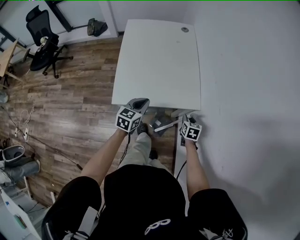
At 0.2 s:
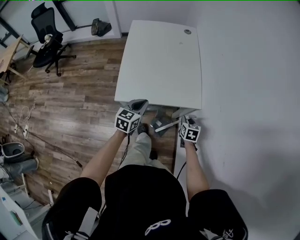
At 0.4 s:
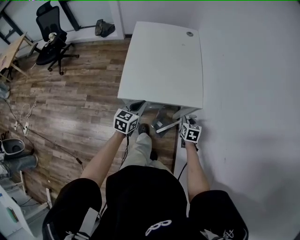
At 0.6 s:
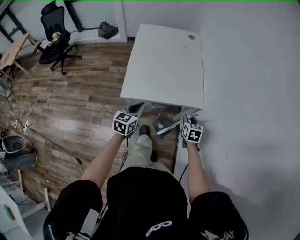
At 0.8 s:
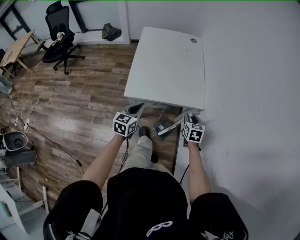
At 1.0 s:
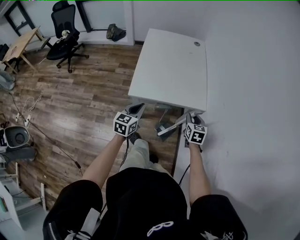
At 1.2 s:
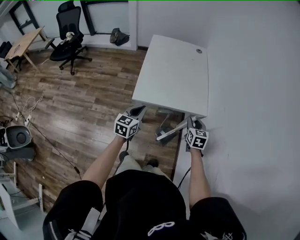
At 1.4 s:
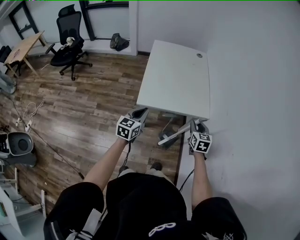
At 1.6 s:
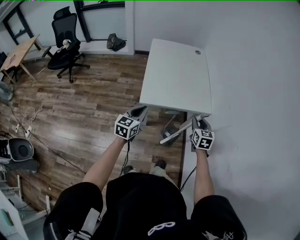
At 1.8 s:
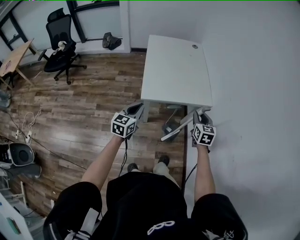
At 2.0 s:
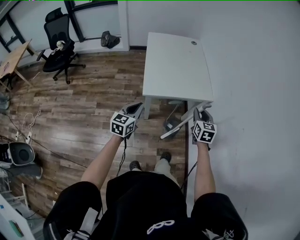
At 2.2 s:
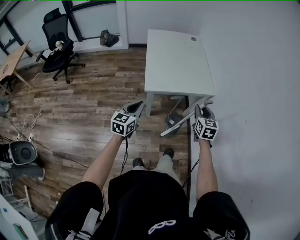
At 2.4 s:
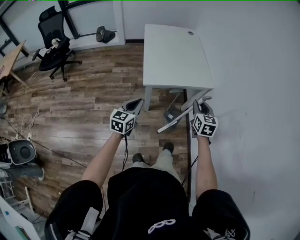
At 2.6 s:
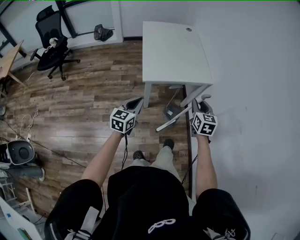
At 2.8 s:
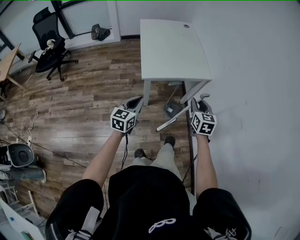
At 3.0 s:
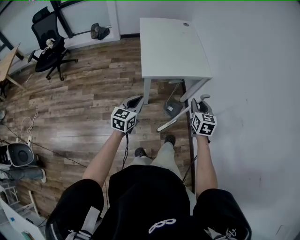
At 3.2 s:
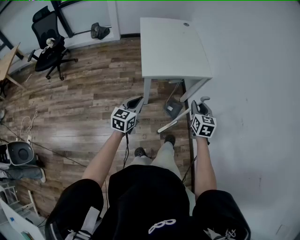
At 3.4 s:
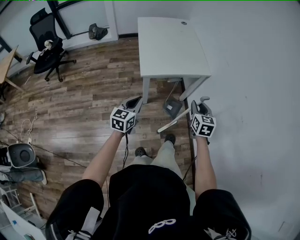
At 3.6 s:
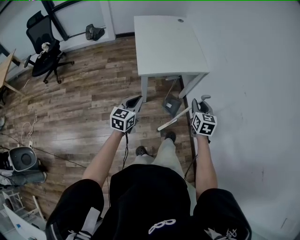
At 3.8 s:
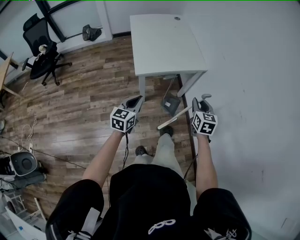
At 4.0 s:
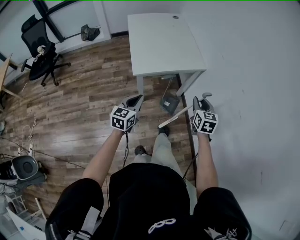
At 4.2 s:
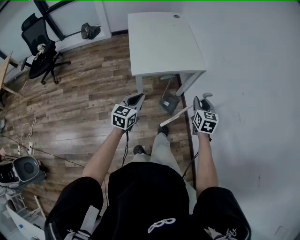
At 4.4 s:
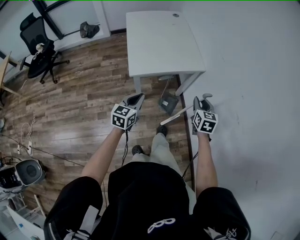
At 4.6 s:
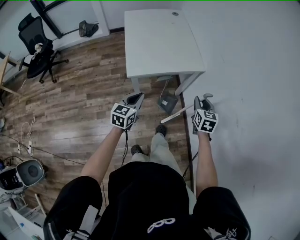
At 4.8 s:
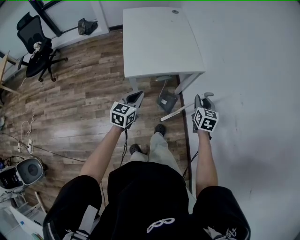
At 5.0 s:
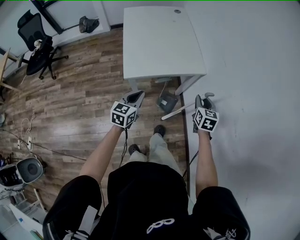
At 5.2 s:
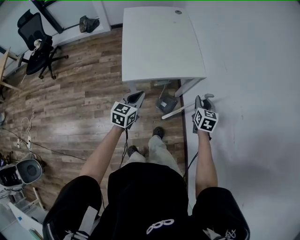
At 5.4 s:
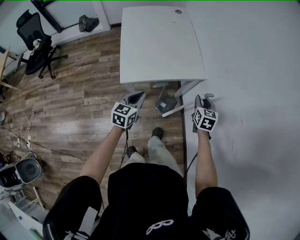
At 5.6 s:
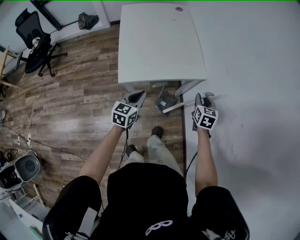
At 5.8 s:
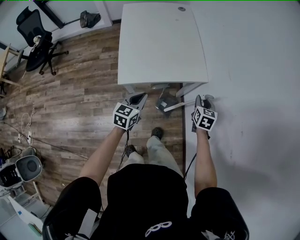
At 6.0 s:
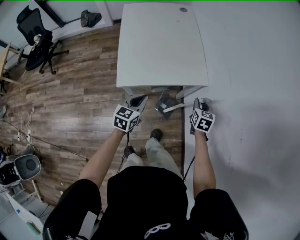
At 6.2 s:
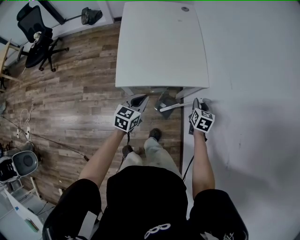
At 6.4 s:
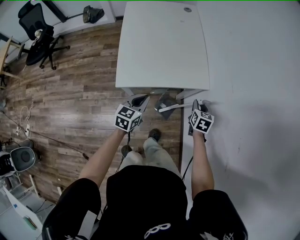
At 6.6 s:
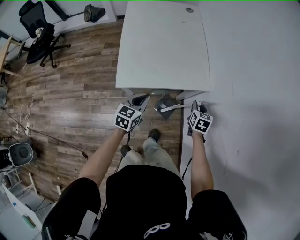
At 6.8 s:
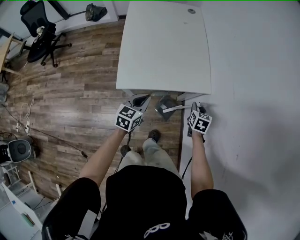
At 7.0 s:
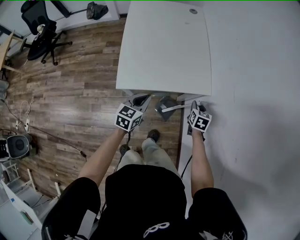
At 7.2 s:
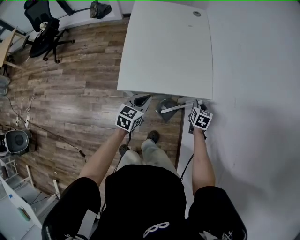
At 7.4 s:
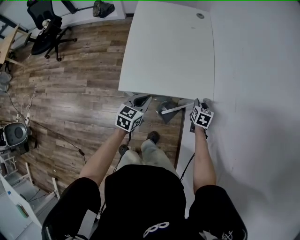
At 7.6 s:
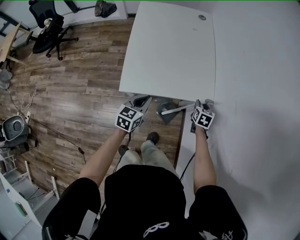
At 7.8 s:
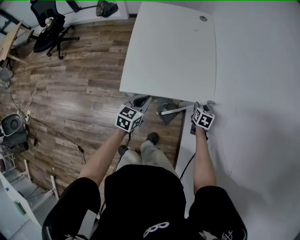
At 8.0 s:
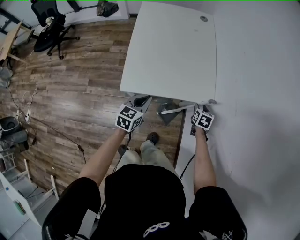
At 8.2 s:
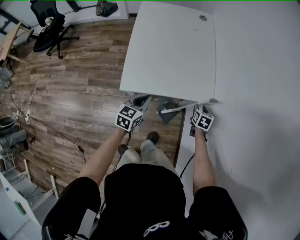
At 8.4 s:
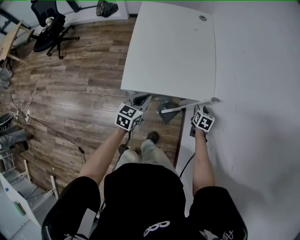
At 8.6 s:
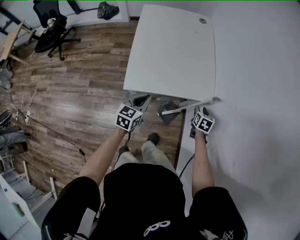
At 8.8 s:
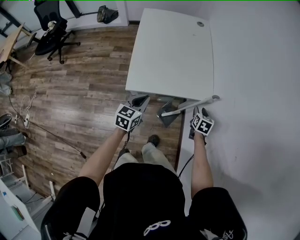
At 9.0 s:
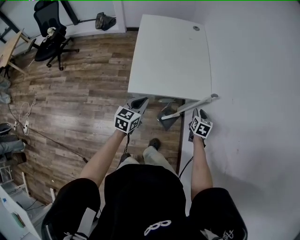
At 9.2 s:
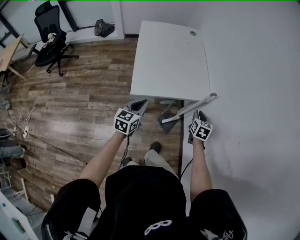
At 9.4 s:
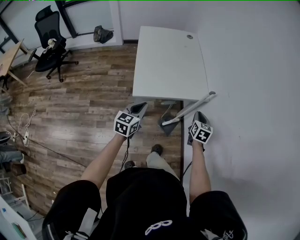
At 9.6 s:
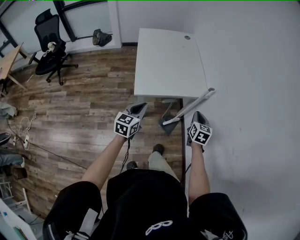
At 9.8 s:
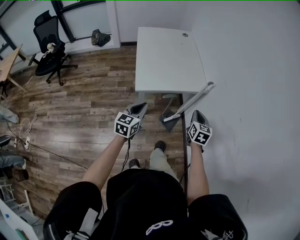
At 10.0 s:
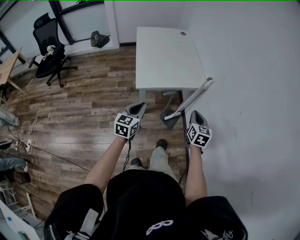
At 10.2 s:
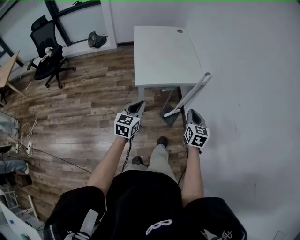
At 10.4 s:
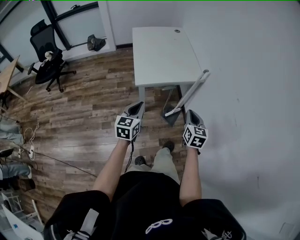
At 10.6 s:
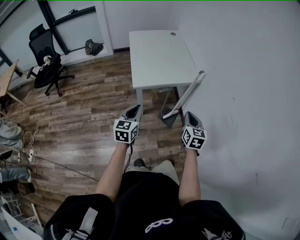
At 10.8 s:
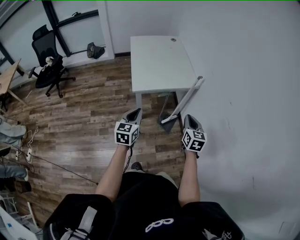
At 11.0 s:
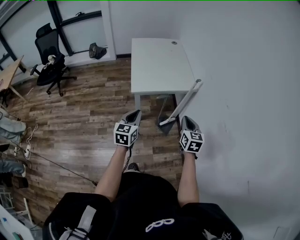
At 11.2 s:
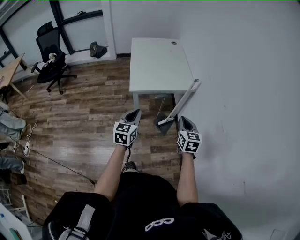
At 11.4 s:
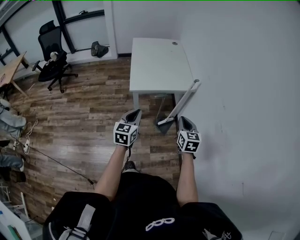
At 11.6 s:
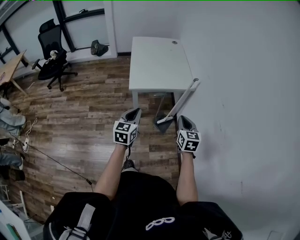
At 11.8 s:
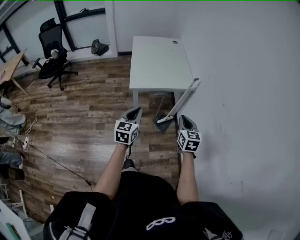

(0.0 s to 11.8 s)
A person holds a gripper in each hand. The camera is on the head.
0.0 s - 1.4 s: The right gripper is displaced upward, backward and to the left by roughly 25 cm, and rotates approximately 20 degrees. The left gripper is displaced backward, to the left and upward by about 25 cm.
1.4 s - 3.0 s: The left gripper shifts some 20 cm backward and to the left. The right gripper travels backward by approximately 20 cm.
3.0 s - 4.4 s: The right gripper shifts roughly 10 cm to the right and forward; the left gripper goes about 10 cm forward and to the right.
4.4 s - 6.0 s: The right gripper goes approximately 25 cm forward and downward. Meanwhile the left gripper travels forward by approximately 20 cm.
6.0 s - 7.4 s: The right gripper goes roughly 10 cm forward and downward. Meanwhile the left gripper travels forward by about 5 cm.
7.4 s - 8.8 s: The two grippers go approximately 5 cm backward.
8.8 s - 10.4 s: Both grippers move backward and upward, some 35 cm. The right gripper swivels roughly 20 degrees, and closes.
10.4 s - 11.8 s: The left gripper moves to the right, roughly 5 cm, while the right gripper moves some 5 cm.

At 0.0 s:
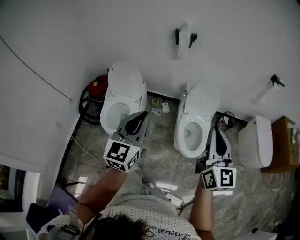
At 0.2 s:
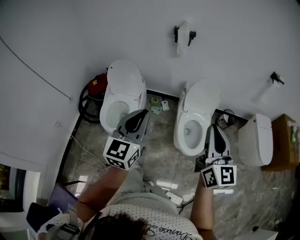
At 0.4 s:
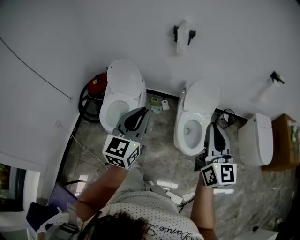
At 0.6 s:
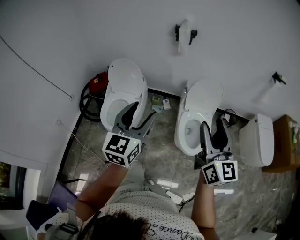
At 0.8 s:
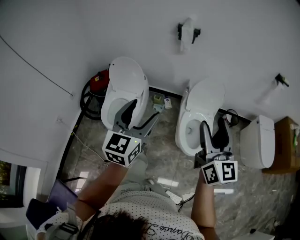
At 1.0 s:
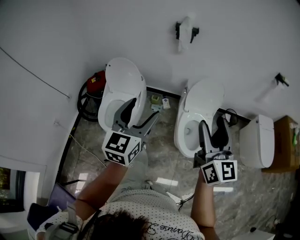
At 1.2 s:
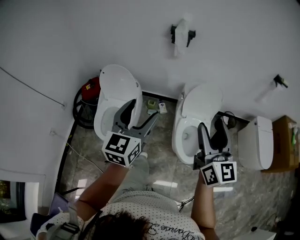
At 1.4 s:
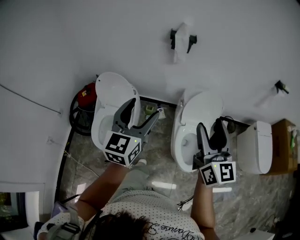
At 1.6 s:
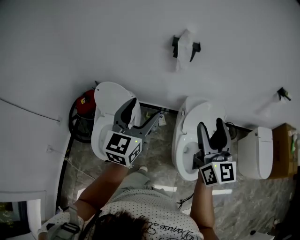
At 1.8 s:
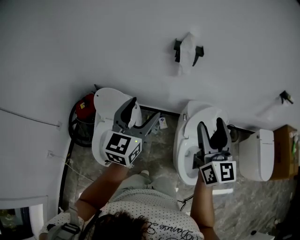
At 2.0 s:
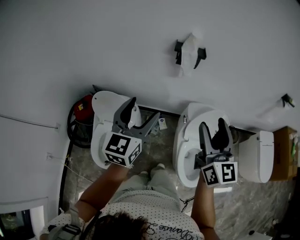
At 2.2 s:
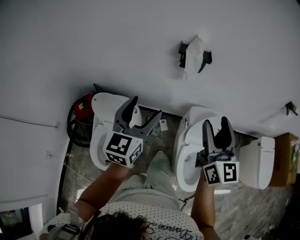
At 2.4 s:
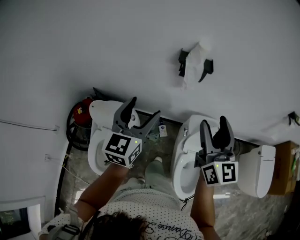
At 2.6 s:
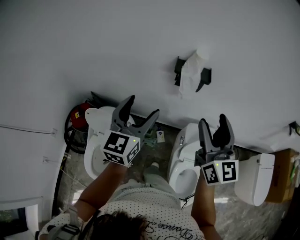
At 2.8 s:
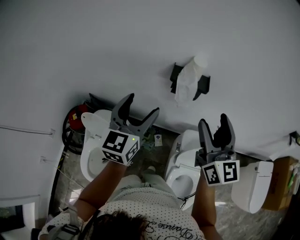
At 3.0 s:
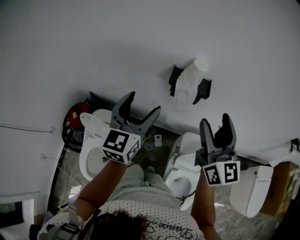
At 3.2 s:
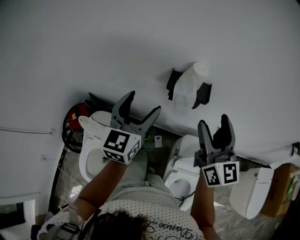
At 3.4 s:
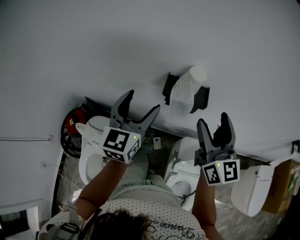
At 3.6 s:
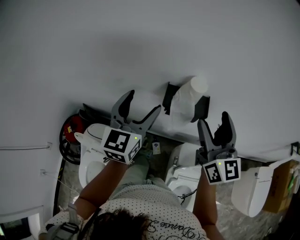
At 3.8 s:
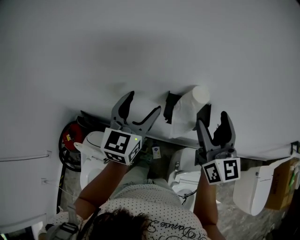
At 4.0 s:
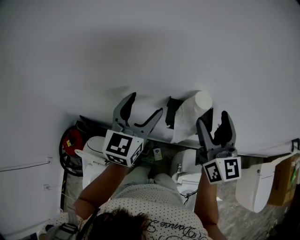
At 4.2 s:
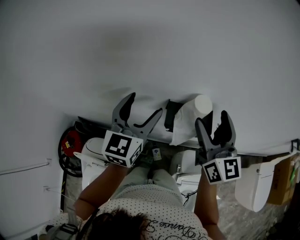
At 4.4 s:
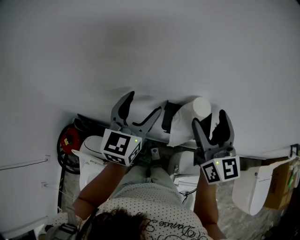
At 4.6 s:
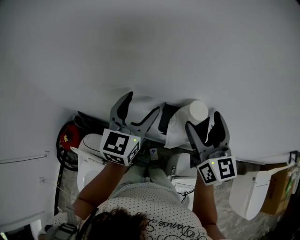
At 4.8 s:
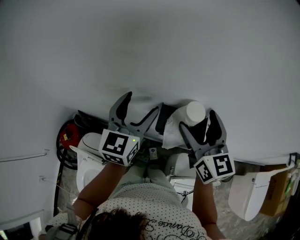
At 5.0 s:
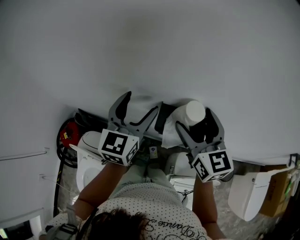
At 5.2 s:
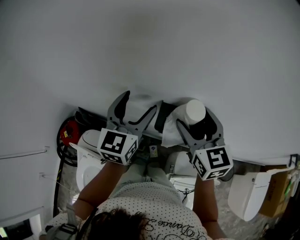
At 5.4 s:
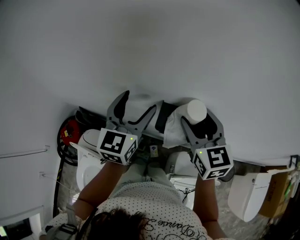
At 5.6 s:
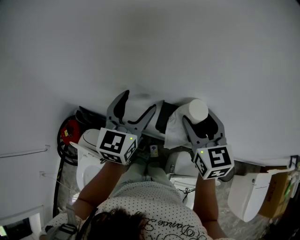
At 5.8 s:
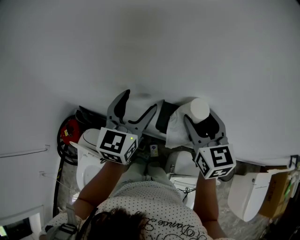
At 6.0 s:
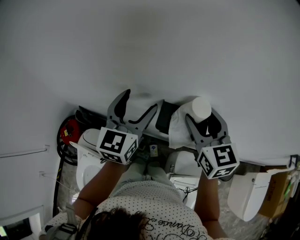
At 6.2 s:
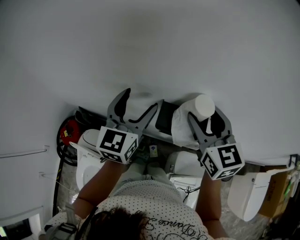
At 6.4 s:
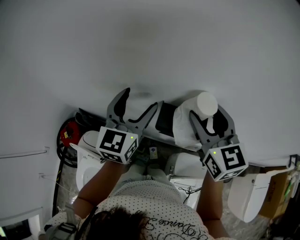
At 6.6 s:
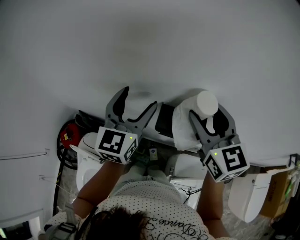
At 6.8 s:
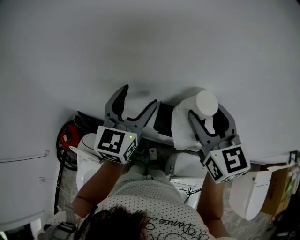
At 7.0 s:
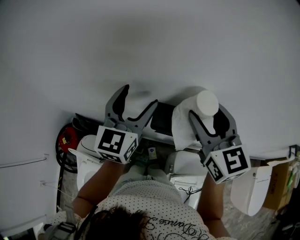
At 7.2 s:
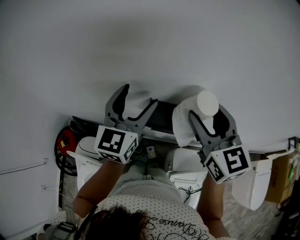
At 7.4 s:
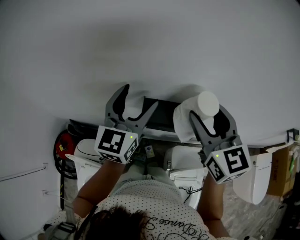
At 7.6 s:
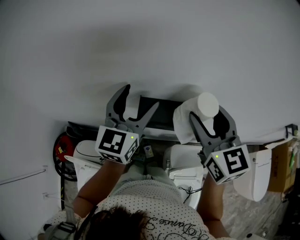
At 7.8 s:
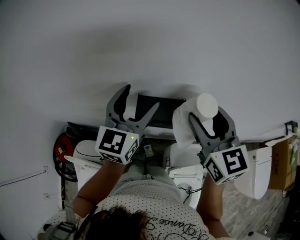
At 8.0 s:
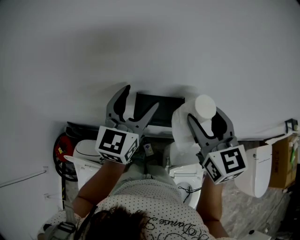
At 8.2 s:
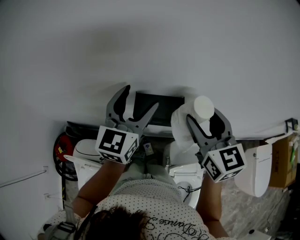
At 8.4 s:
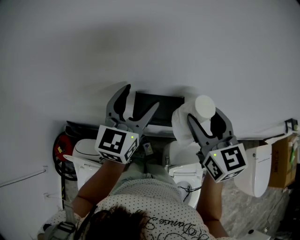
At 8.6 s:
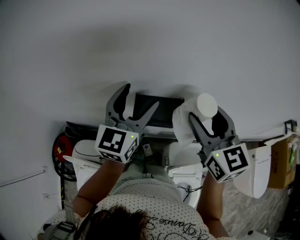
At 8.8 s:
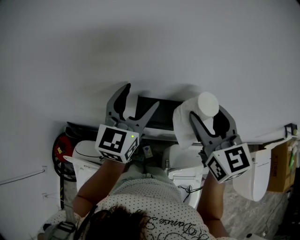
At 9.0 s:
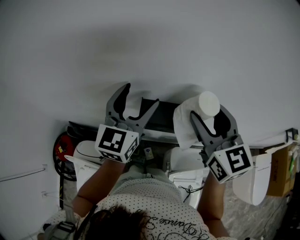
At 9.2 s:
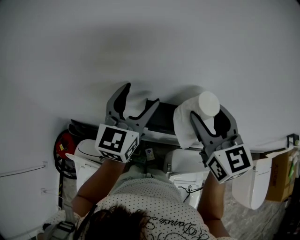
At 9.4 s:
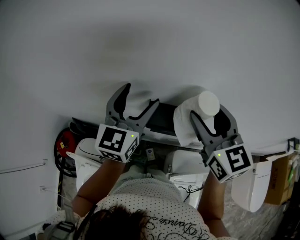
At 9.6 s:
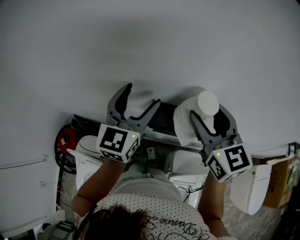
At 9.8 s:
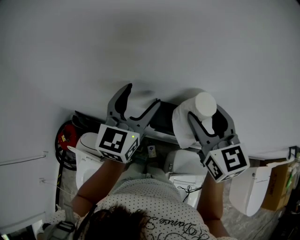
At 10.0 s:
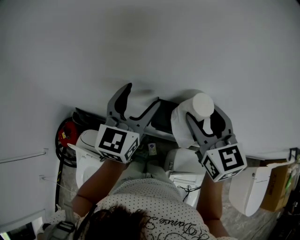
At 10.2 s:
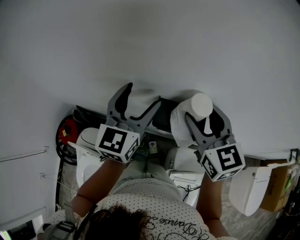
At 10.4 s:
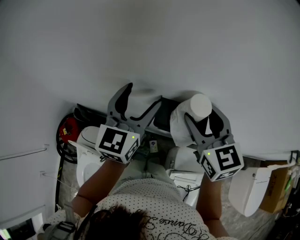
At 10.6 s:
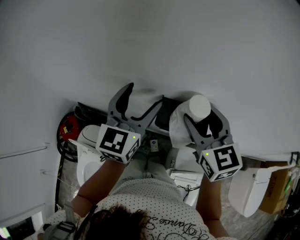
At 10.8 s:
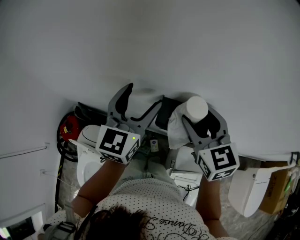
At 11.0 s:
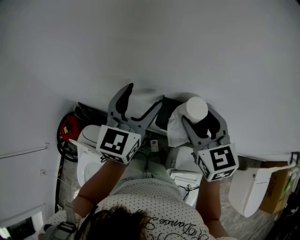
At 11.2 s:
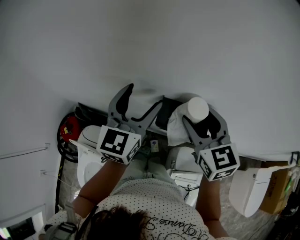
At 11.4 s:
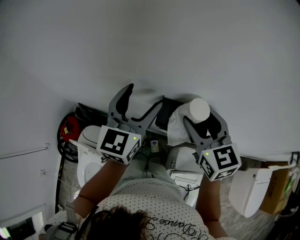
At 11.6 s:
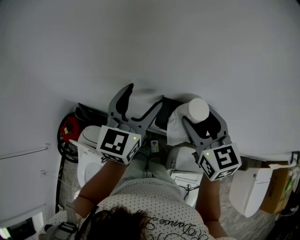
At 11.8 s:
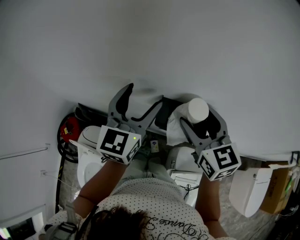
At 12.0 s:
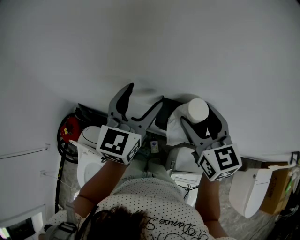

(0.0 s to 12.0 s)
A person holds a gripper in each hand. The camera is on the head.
0.0 s - 1.6 s: Both grippers travel together forward, some 25 cm. The left gripper opens, while the right gripper opens its fingers.
1.6 s - 3.0 s: Both grippers travel together forward, roughly 35 cm.
3.0 s - 4.4 s: The grippers both shift forward by approximately 20 cm.
4.4 s - 6.0 s: The right gripper moves some 5 cm, and changes its angle by some 20 degrees.
6.0 s - 7.6 s: The right gripper travels backward, upward and to the right by approximately 10 cm. The left gripper goes approximately 10 cm to the right.
7.6 s - 9.0 s: The grippers move only a little.
9.0 s - 10.4 s: The left gripper moves roughly 5 cm. Meanwhile the right gripper is displaced downward and to the left by about 10 cm.
10.4 s - 12.0 s: The grippers move only a little.
